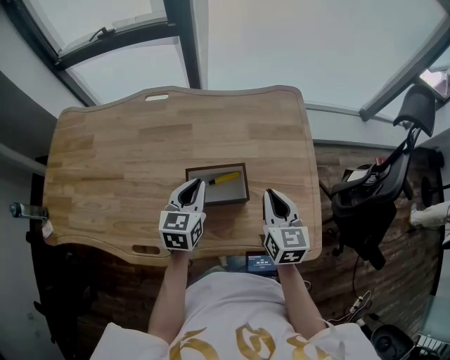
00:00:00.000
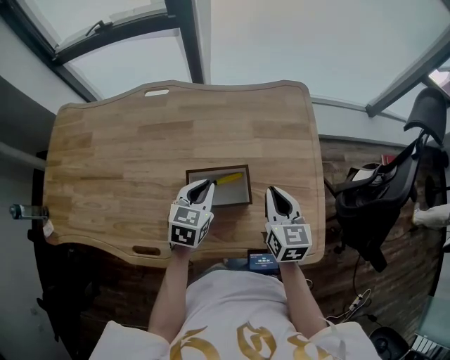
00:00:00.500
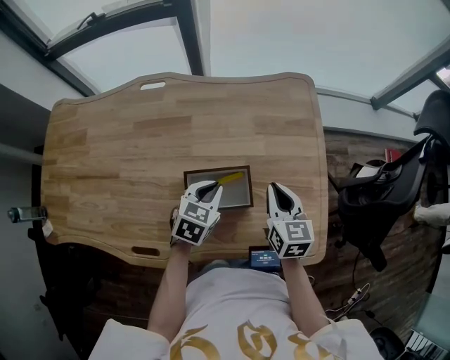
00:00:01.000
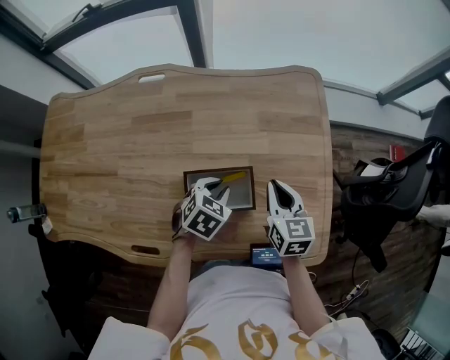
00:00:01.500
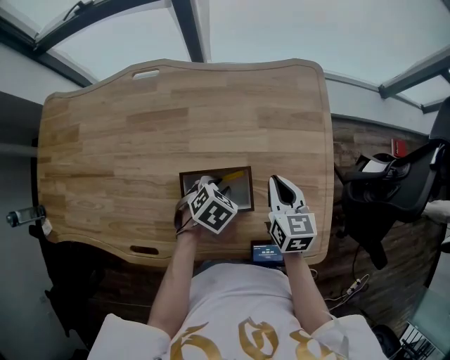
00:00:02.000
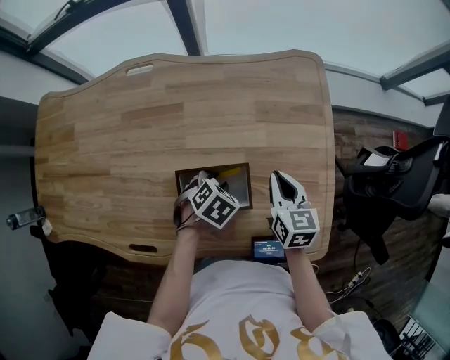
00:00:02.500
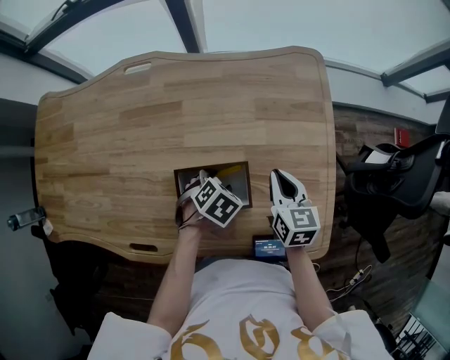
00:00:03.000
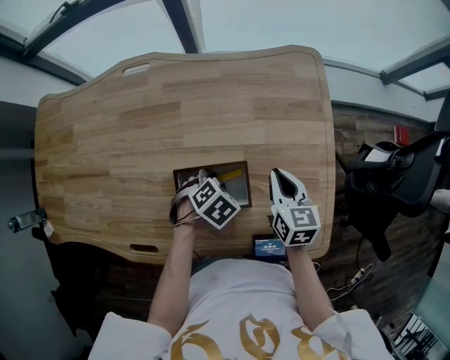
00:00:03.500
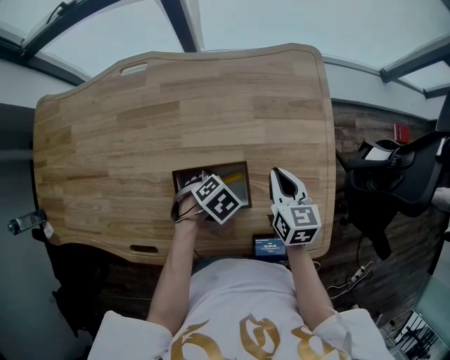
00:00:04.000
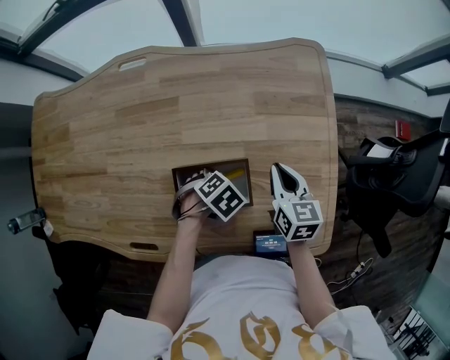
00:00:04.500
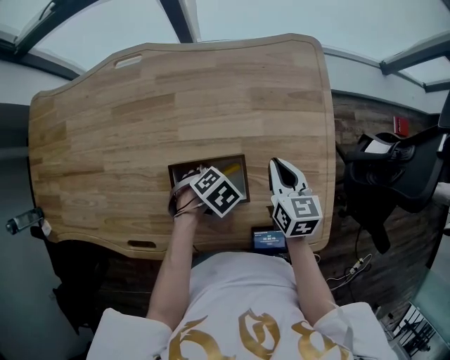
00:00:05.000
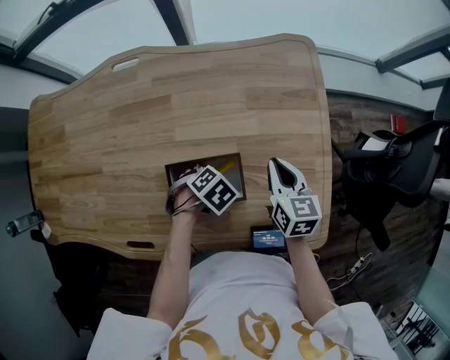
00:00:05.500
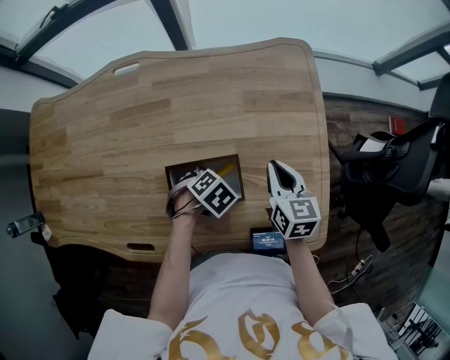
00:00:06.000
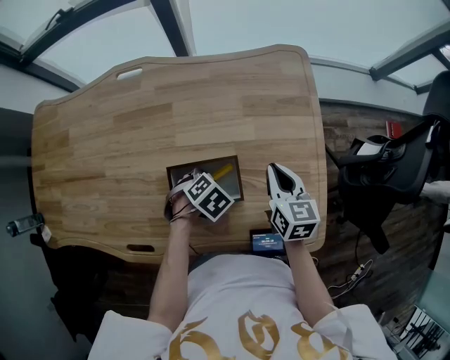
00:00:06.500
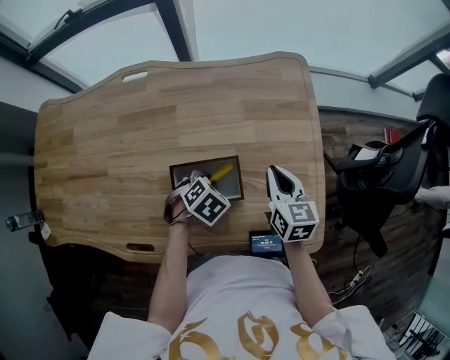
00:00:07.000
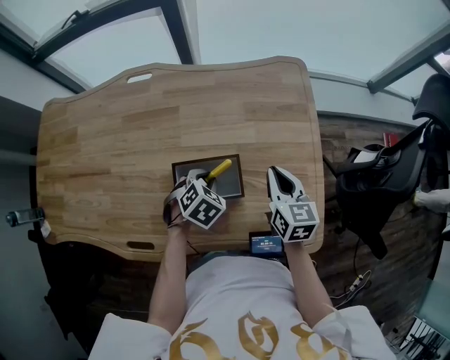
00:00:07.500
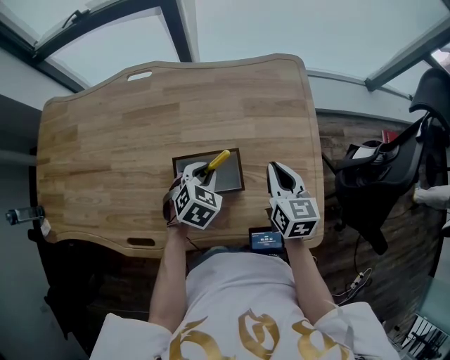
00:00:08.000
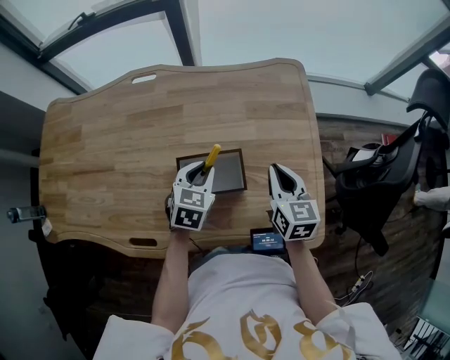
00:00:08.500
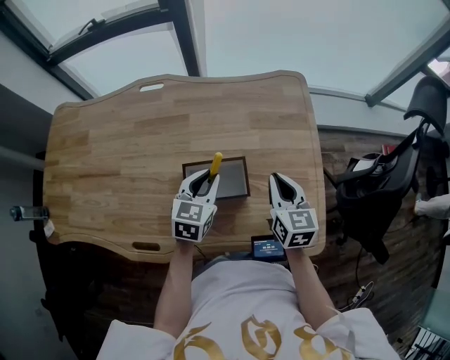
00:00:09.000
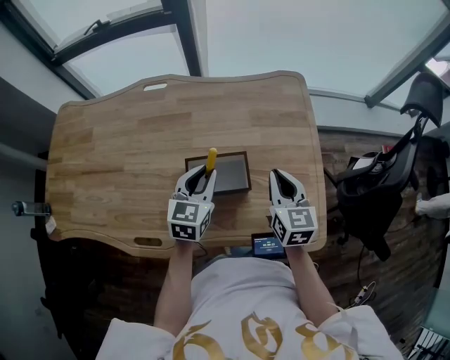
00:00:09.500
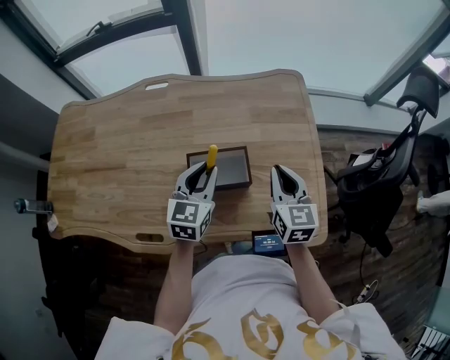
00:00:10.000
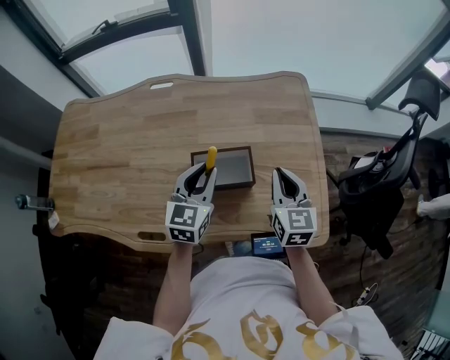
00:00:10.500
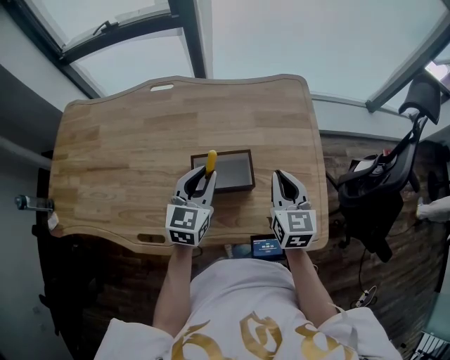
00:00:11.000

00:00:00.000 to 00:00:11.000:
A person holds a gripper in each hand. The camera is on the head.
00:00:00.000 to 00:00:02.000: The left gripper travels downward and to the right by approximately 15 cm, angles its fingers downward, by about 40 degrees, and opens up. Meanwhile the right gripper shifts approximately 10 cm downward and forward.
00:00:02.000 to 00:00:03.500: The grippers make only small movements.
00:00:03.500 to 00:00:05.500: The grippers move only a little.
00:00:05.500 to 00:00:07.500: The right gripper moves about 5 cm. The left gripper shifts roughly 5 cm upward, and turns by approximately 20 degrees.
00:00:07.500 to 00:00:09.000: The left gripper shifts about 10 cm upward, and tilts its fingers some 40 degrees upward.
00:00:09.000 to 00:00:11.000: The left gripper shifts roughly 5 cm upward.

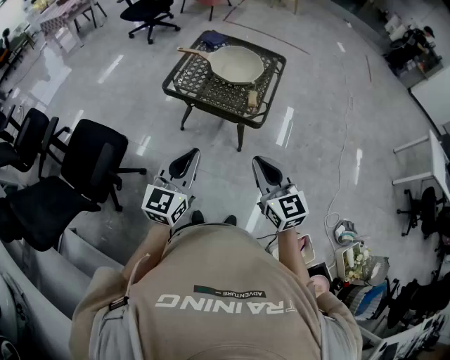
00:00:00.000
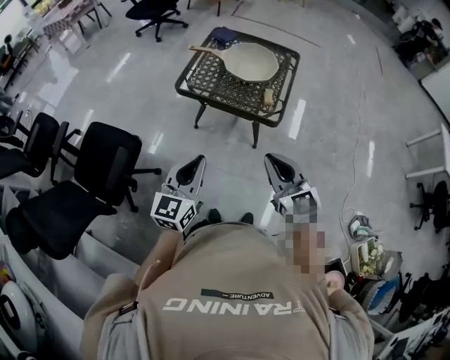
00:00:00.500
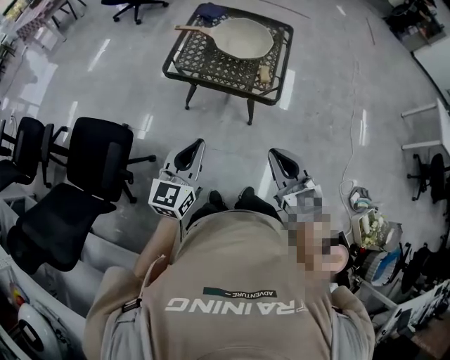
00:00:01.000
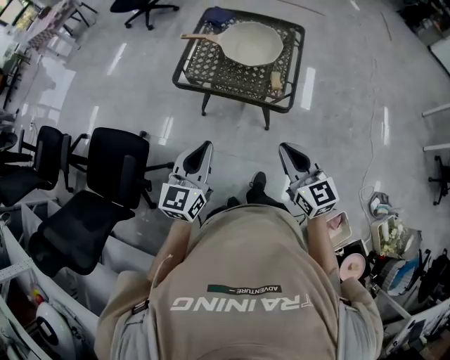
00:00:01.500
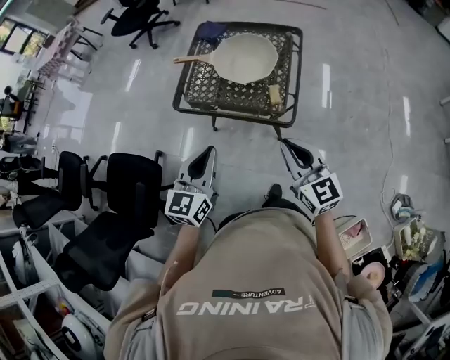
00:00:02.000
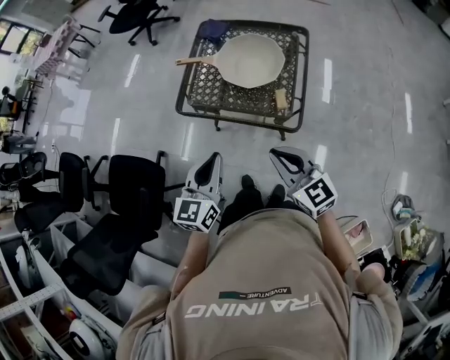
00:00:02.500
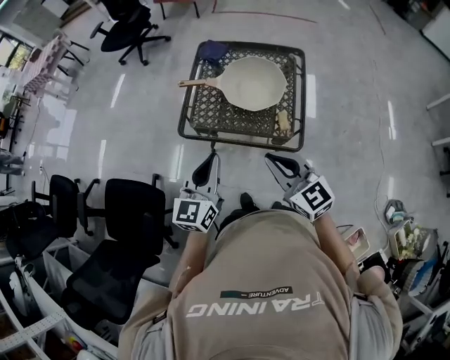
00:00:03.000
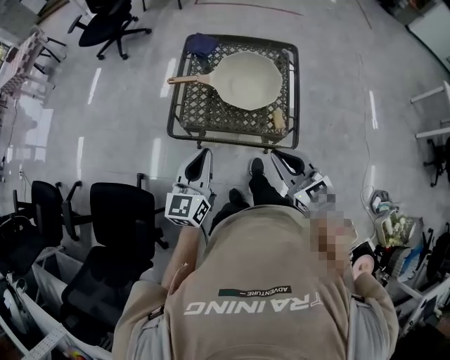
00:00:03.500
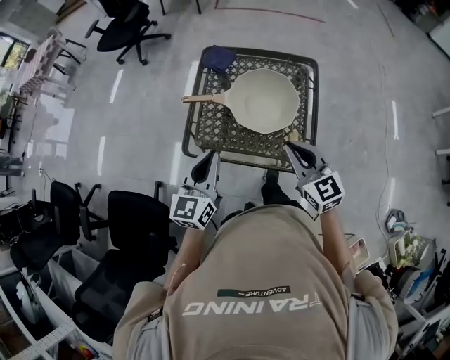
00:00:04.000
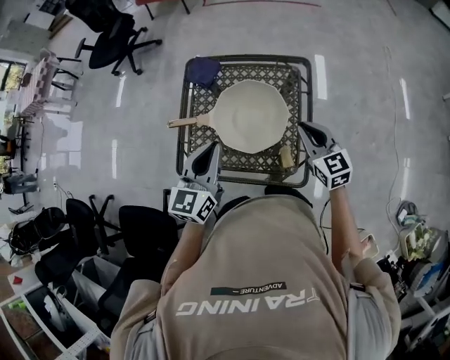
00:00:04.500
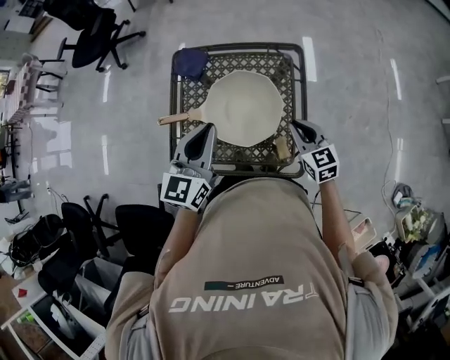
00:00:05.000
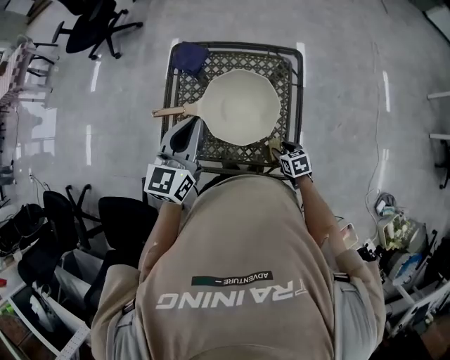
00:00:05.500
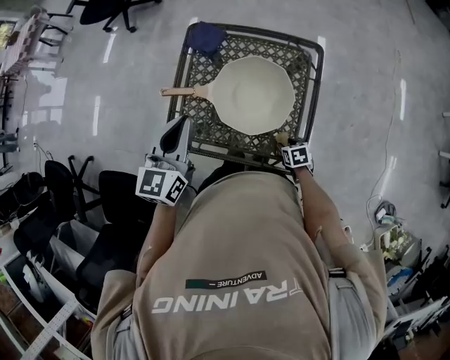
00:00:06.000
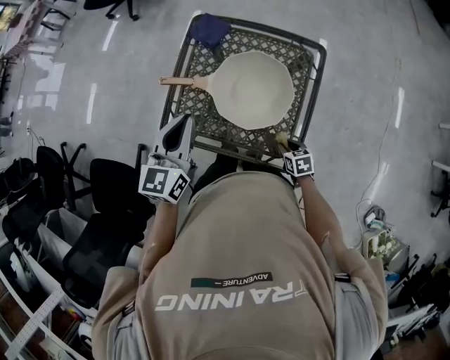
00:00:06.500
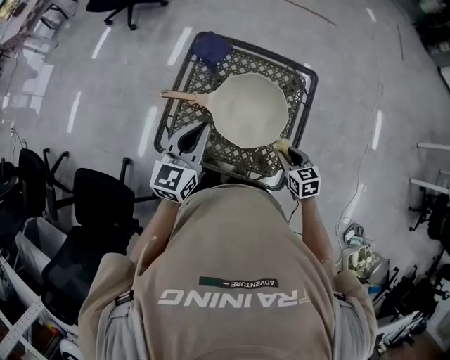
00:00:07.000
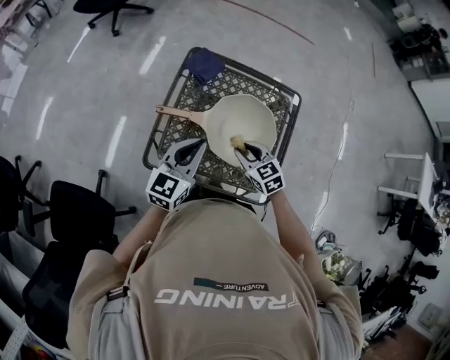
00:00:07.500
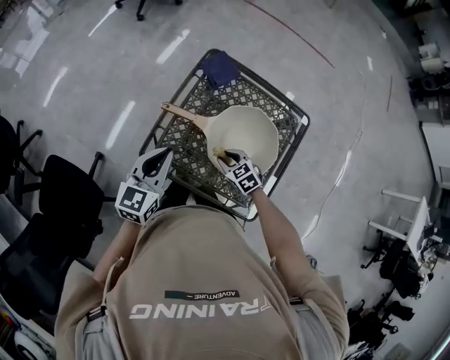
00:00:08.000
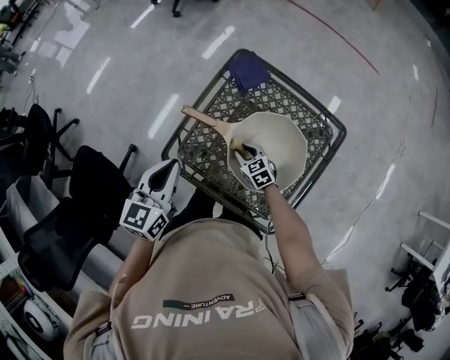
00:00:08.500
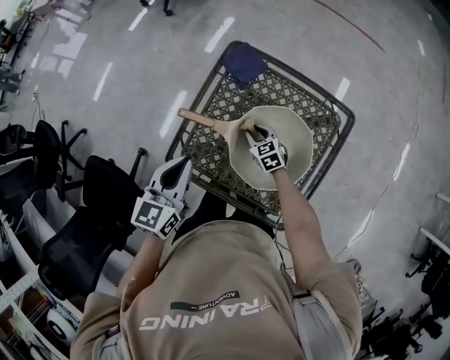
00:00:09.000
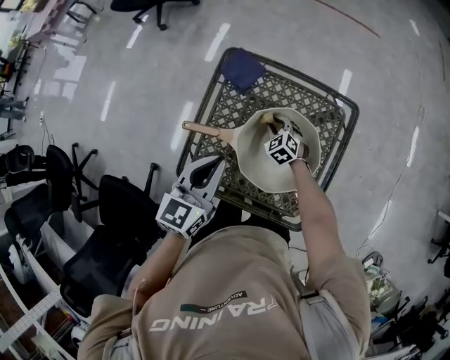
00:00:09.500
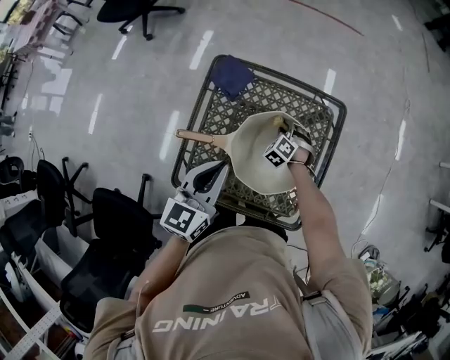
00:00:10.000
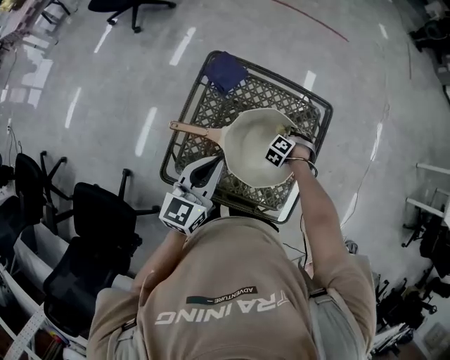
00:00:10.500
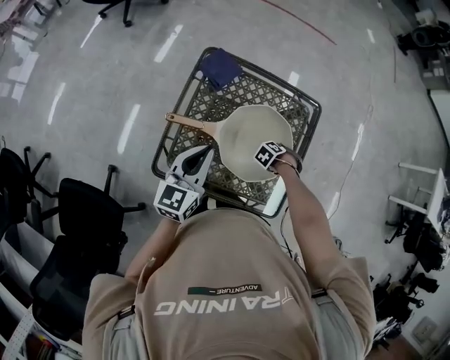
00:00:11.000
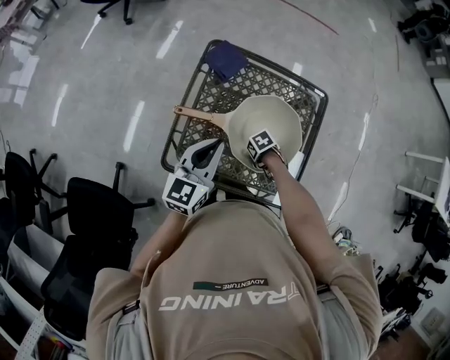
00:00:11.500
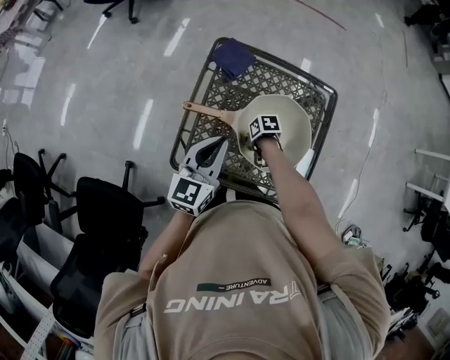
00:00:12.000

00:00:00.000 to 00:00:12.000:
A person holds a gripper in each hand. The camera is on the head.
00:00:00.000 to 00:00:02.000: The grippers both shift forward by approximately 15 cm.
00:00:02.000 to 00:00:04.000: The grippers both shift forward by roughly 25 cm.
00:00:04.000 to 00:00:06.000: The right gripper goes some 35 cm downward, angles its fingers downward, by approximately 50 degrees, and opens. Meanwhile the left gripper goes roughly 15 cm forward.
00:00:06.000 to 00:00:08.000: The left gripper is displaced to the left and downward by approximately 10 cm; the right gripper is displaced to the left, forward and upward by roughly 25 cm, twists about 40 degrees counterclockwise, seen from behind, and closes its fingers.
00:00:08.000 to 00:00:10.000: The left gripper ends up approximately 15 cm from where it was; the right gripper changes place by roughly 25 cm, and changes its angle by roughly 40 degrees.
00:00:10.000 to 00:00:12.000: The right gripper ends up some 20 cm from where it was, and rotates about 80 degrees, while the left gripper shifts by about 5 cm.

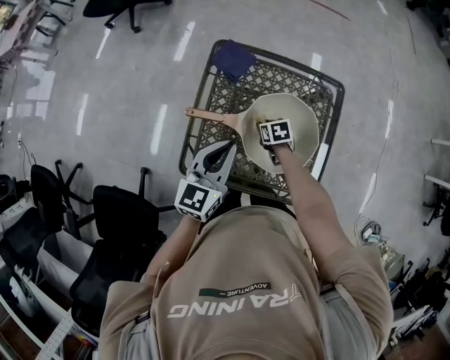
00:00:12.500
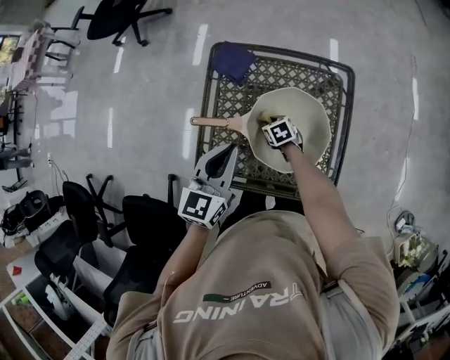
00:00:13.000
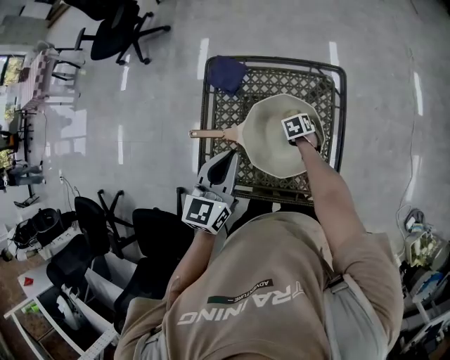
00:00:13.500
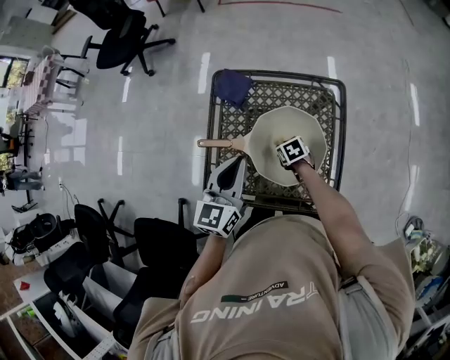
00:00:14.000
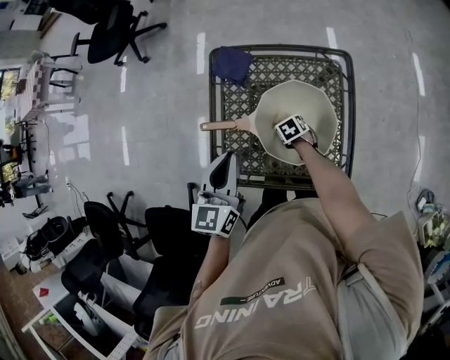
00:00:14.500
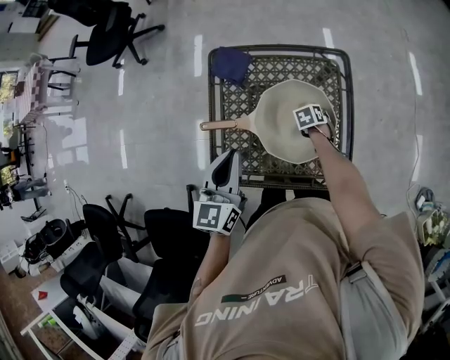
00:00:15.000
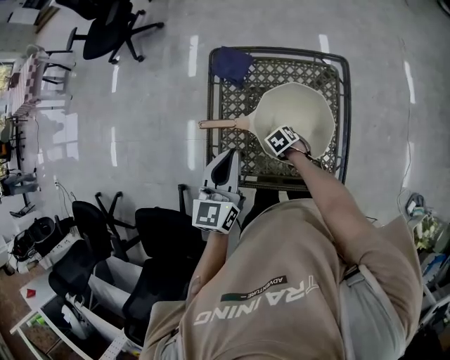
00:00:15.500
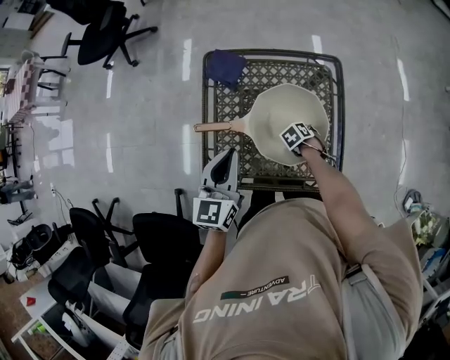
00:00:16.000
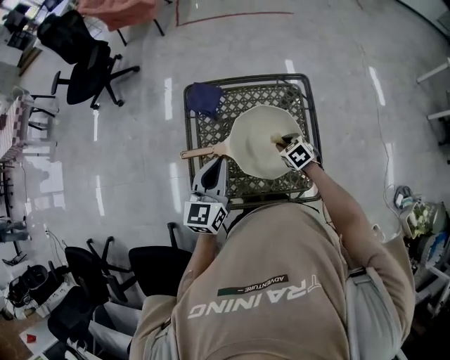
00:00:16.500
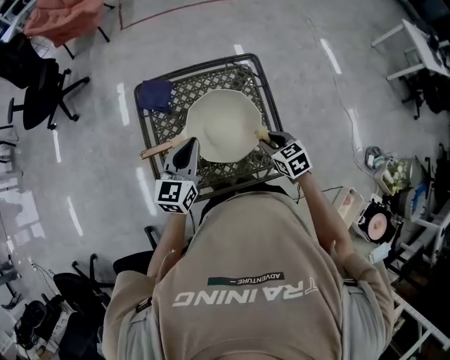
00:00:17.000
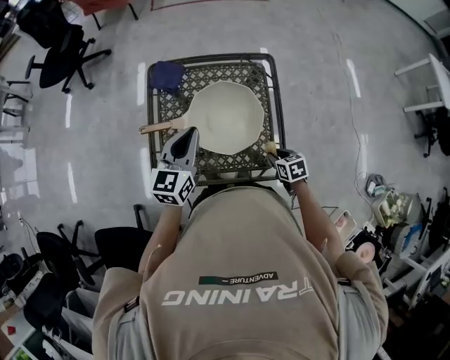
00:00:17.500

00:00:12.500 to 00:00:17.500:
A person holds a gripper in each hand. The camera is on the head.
00:00:12.500 to 00:00:15.000: The right gripper swings up and down, some 5 cm each way, with 2 reversals, and turns by about 20 degrees.
00:00:15.000 to 00:00:17.500: The right gripper moves some 25 cm, and rotates approximately 30 degrees; the left gripper ends up roughly 10 cm from where it was.
